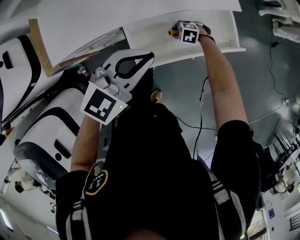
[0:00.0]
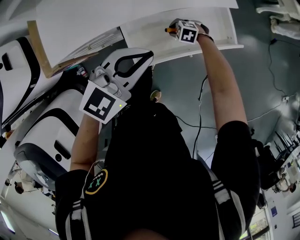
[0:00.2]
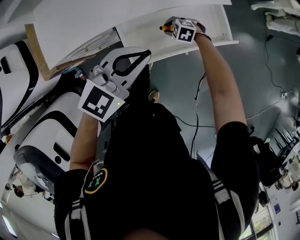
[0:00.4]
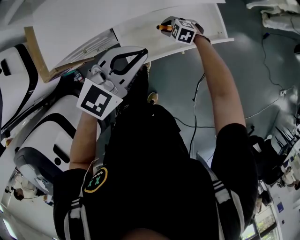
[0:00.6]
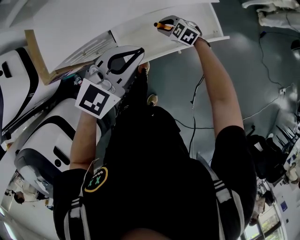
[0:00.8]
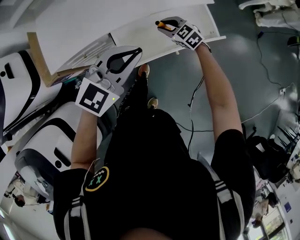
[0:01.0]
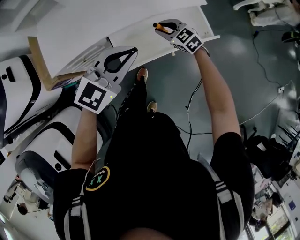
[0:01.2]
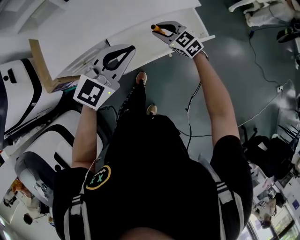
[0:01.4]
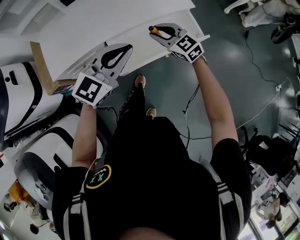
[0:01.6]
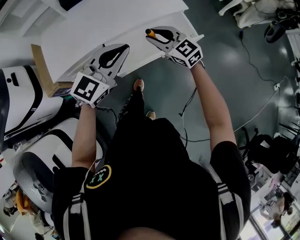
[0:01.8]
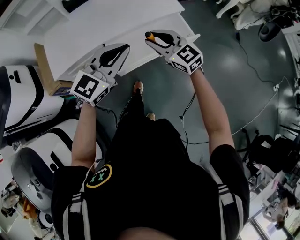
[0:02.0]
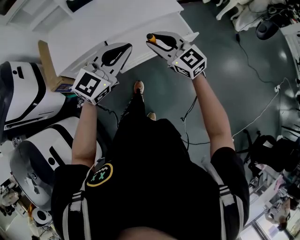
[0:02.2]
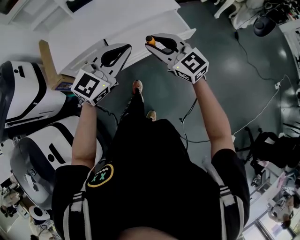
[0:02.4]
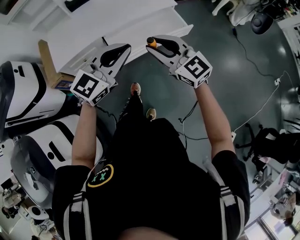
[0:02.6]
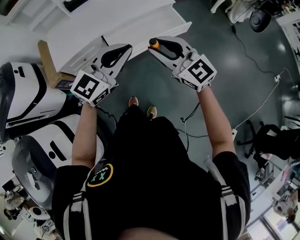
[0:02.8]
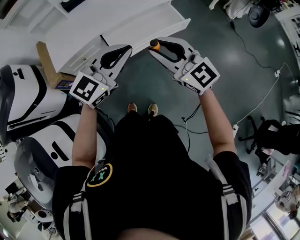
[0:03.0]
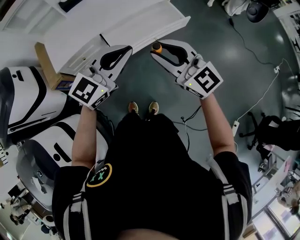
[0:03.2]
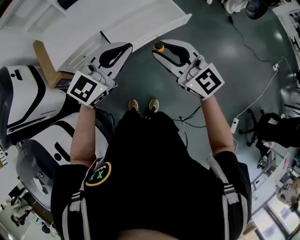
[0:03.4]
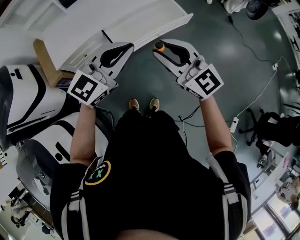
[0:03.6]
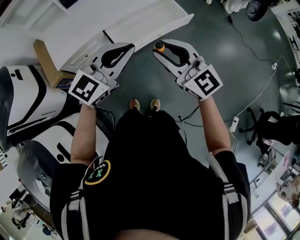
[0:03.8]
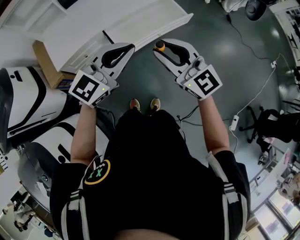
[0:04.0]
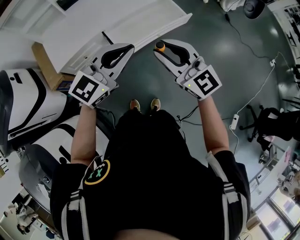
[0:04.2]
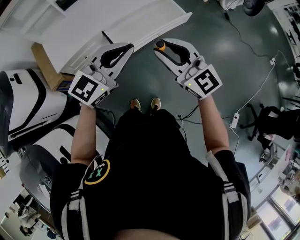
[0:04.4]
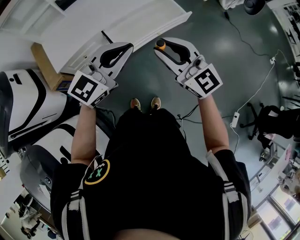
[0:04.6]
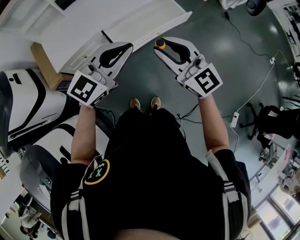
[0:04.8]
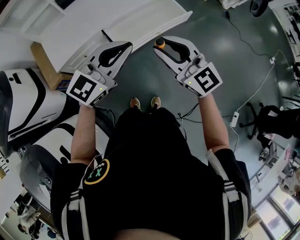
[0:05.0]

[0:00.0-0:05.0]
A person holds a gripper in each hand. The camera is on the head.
0.0 to 1.6 s: The left gripper moves upward, some 5 cm. Meanwhile the right gripper goes about 30 cm upward, and angles its fingers upward, by about 50 degrees.
1.6 to 3.4 s: The right gripper heads backward and upward, covering approximately 35 cm, and swivels roughly 20 degrees; the left gripper moves backward, some 20 cm.
3.4 to 5.0 s: The grippers stay close to where they were, moving slightly.

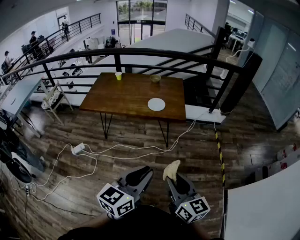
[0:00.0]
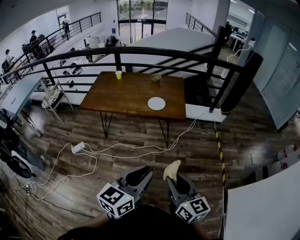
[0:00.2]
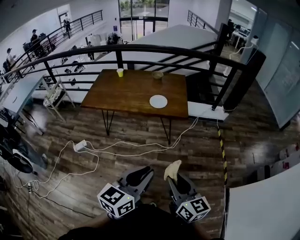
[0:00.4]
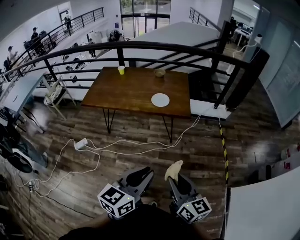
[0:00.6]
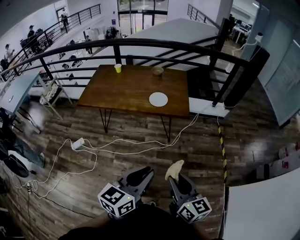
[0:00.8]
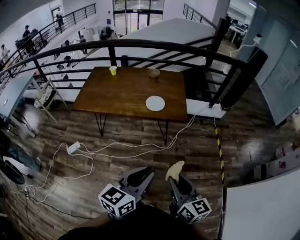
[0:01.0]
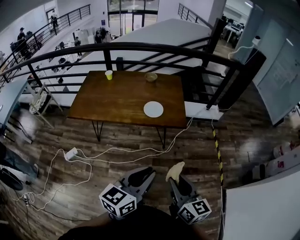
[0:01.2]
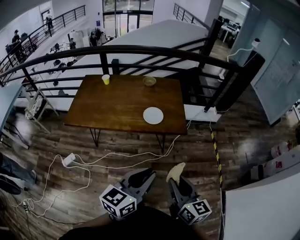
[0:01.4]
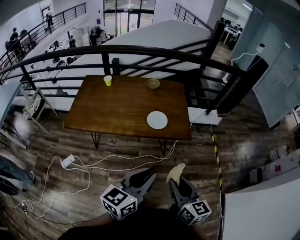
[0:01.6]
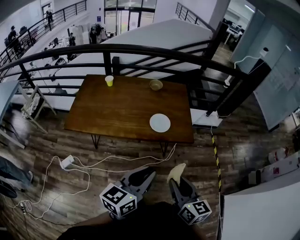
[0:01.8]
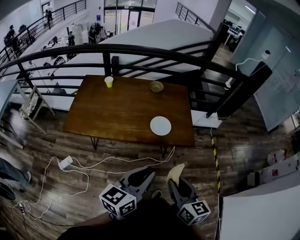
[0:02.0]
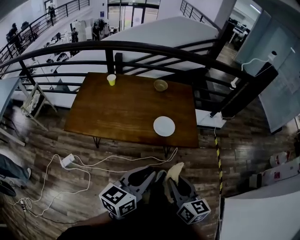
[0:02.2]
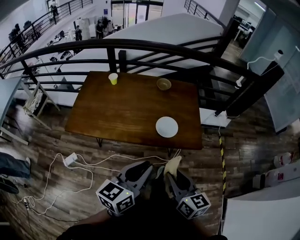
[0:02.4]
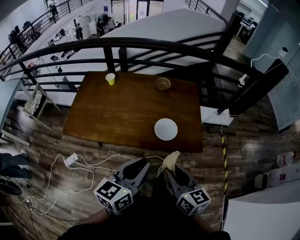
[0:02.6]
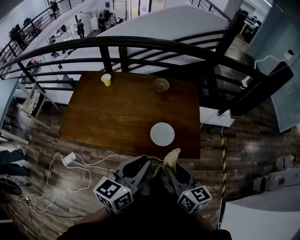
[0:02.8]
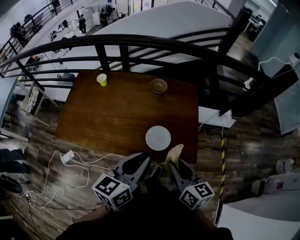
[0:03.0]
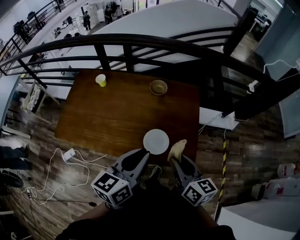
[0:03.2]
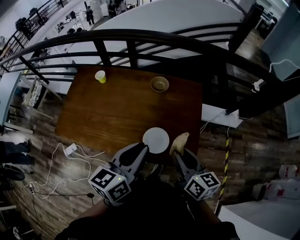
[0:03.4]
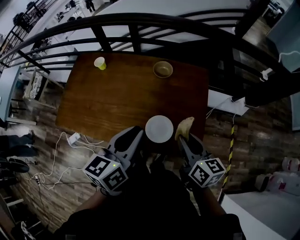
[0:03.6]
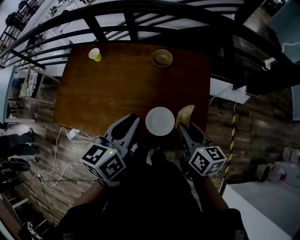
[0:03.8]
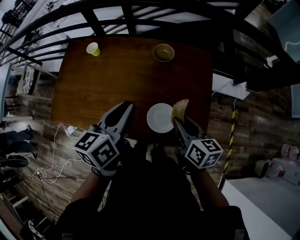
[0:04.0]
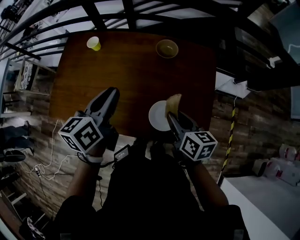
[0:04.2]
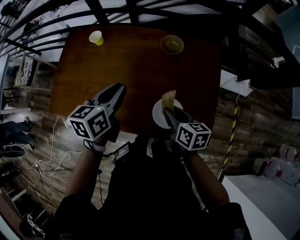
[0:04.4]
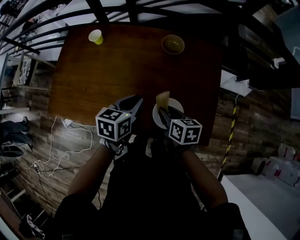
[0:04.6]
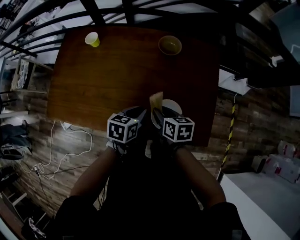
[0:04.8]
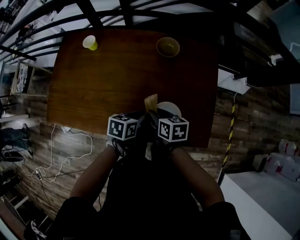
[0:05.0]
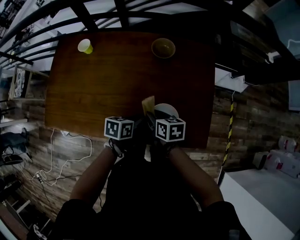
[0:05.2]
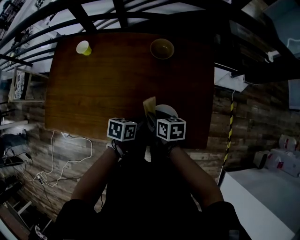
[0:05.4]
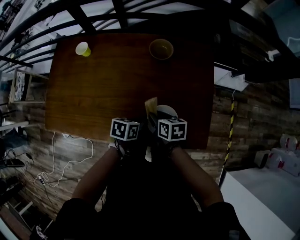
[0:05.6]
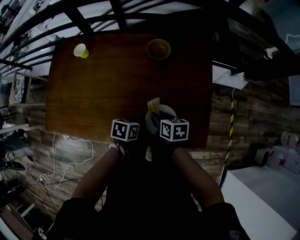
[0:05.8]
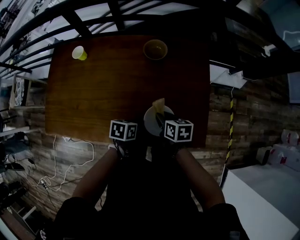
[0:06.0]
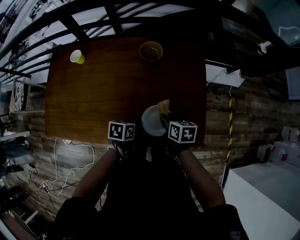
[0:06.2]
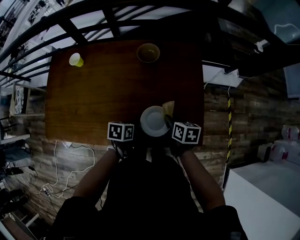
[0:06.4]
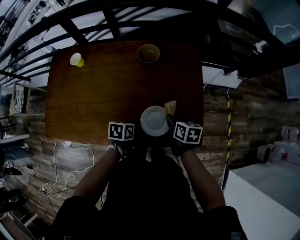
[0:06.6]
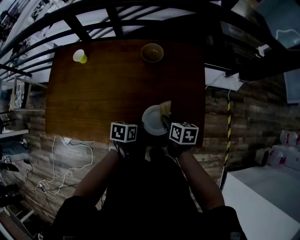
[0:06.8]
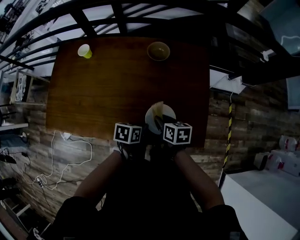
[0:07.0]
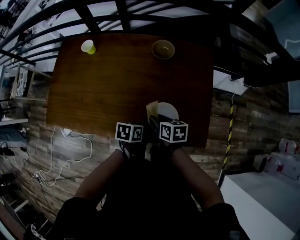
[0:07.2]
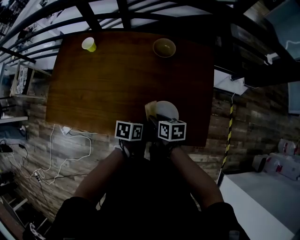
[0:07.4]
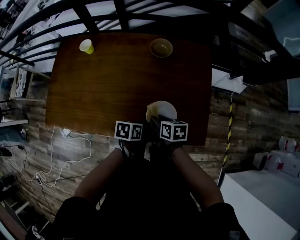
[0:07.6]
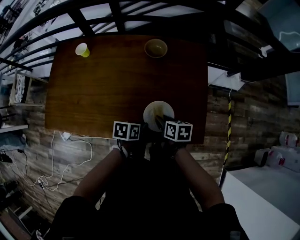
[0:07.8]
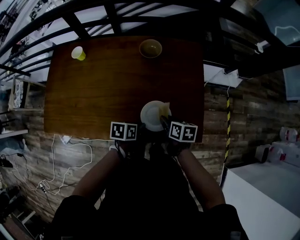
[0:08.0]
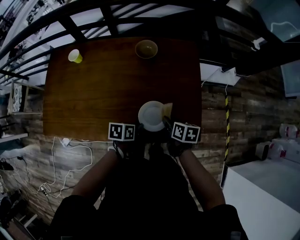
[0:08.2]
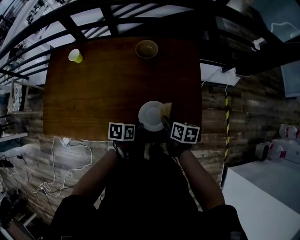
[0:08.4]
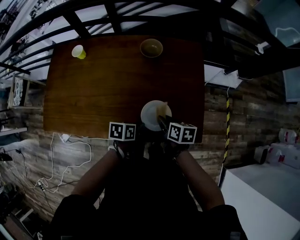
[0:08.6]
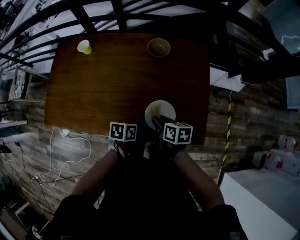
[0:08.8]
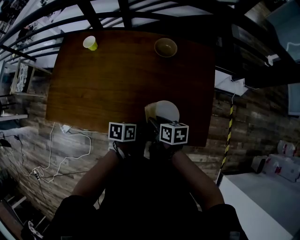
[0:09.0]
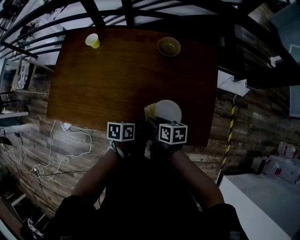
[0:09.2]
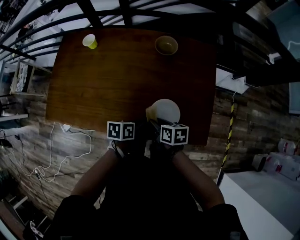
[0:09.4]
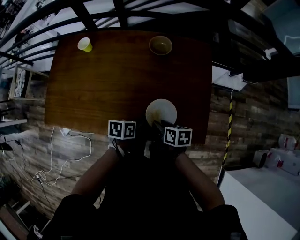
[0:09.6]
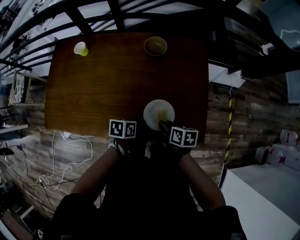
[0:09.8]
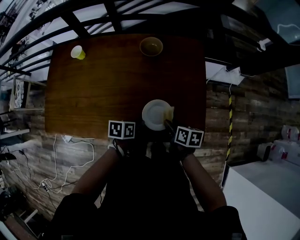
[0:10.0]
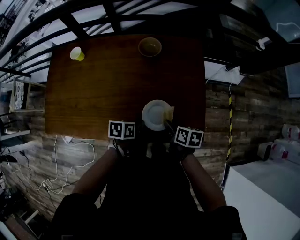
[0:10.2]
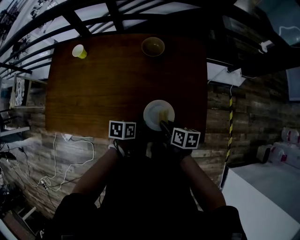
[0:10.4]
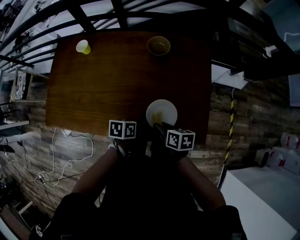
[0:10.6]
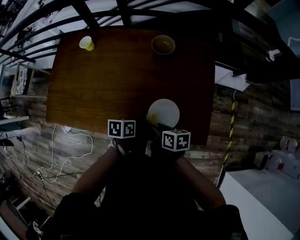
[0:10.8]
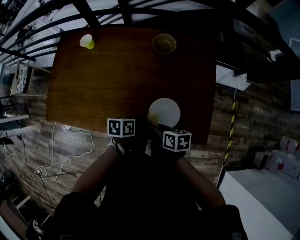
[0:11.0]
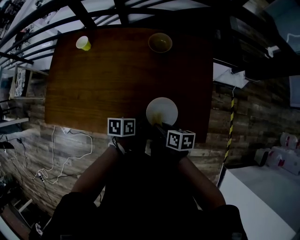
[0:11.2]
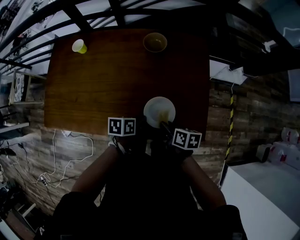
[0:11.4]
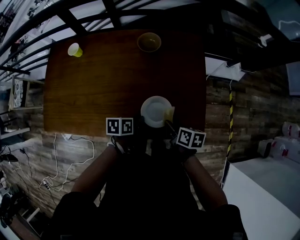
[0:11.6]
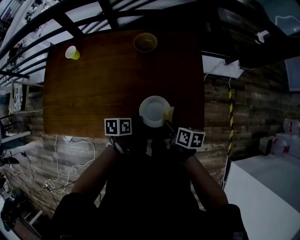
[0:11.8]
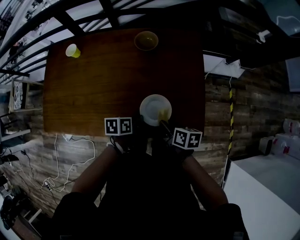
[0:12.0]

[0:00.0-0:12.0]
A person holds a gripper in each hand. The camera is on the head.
0.0 to 1.6 s: Both grippers move forward and to the left, roughly 30 cm.
1.6 to 3.0 s: Both grippers move forward, roughly 35 cm.
3.0 to 4.4 s: The left gripper heads forward, downward and to the left, covering roughly 30 cm; the right gripper heads forward and downward, covering roughly 25 cm, and rotates approximately 20 degrees.
4.4 to 6.0 s: The right gripper shifts about 10 cm downward. The left gripper moves downward and to the right, roughly 25 cm, and swivels roughly 40 degrees.
6.0 to 7.6 s: The right gripper goes to the right and returns, some 10 cm each way.
7.6 to 9.0 s: The right gripper travels to the right and back again, about 10 cm each way.
9.0 to 10.4 s: The right gripper shifts approximately 10 cm to the right.
10.4 to 12.0 s: The right gripper reaches approximately 5 cm to the left, then returns.

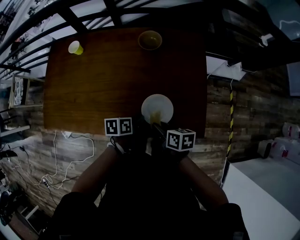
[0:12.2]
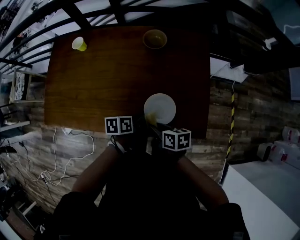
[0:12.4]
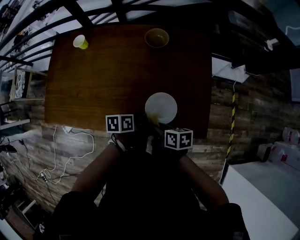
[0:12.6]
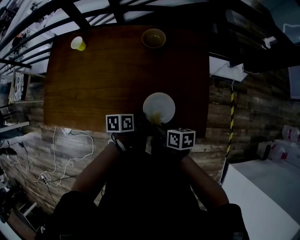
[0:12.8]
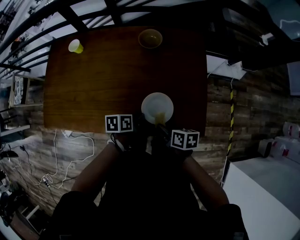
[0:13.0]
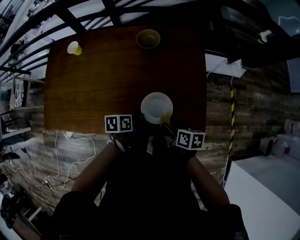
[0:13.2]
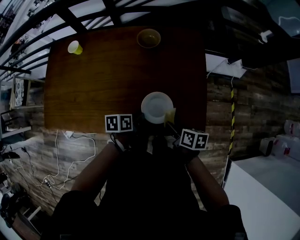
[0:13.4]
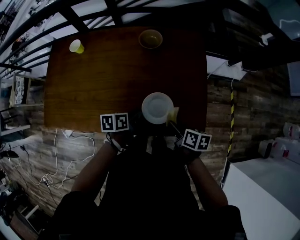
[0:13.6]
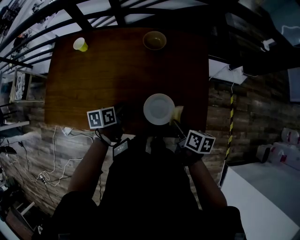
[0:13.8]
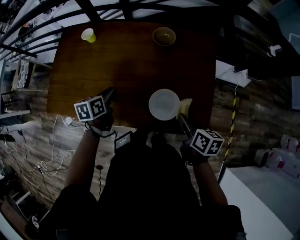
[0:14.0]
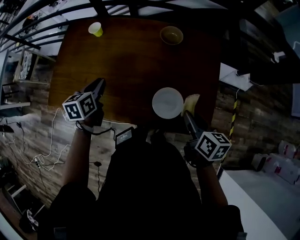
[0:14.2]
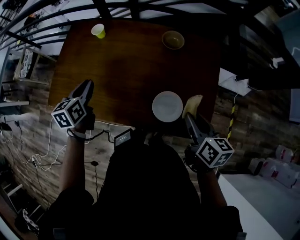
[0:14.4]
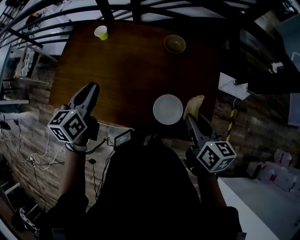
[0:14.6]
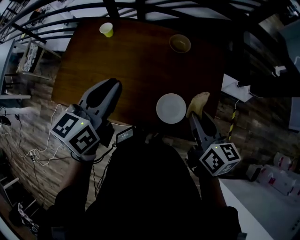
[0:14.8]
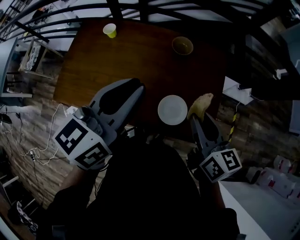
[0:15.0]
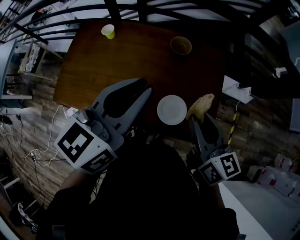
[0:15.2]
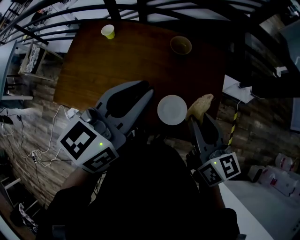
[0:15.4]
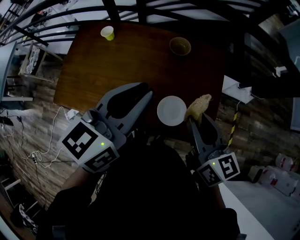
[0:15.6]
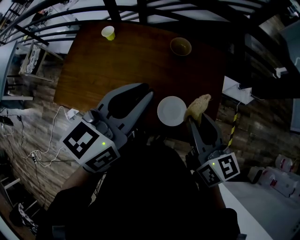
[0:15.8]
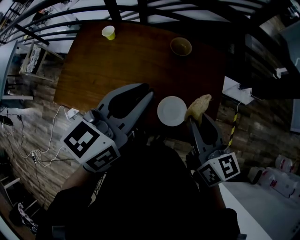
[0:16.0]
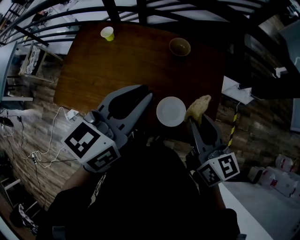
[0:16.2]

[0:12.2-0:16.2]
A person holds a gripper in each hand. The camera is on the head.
12.2 to 13.6 s: The right gripper goes about 5 cm to the right.
13.6 to 14.8 s: Both grippers move upward, approximately 25 cm. The left gripper changes its angle by approximately 50 degrees; the right gripper turns by approximately 30 degrees.
14.8 to 16.2 s: The left gripper moves to the right and upward, some 10 cm; the right gripper moves upward, approximately 5 cm.

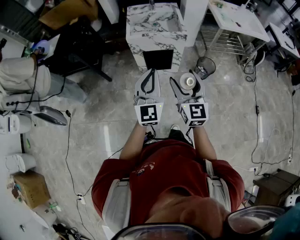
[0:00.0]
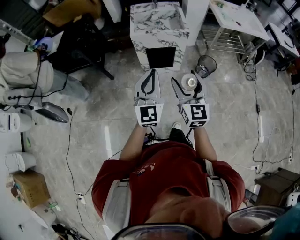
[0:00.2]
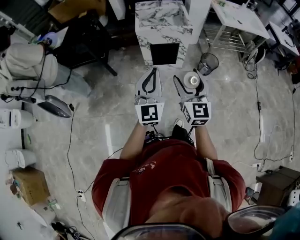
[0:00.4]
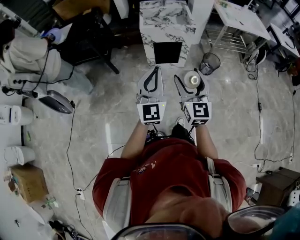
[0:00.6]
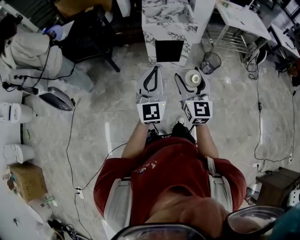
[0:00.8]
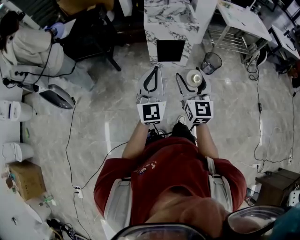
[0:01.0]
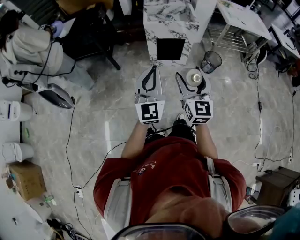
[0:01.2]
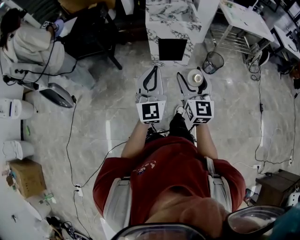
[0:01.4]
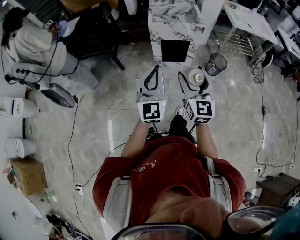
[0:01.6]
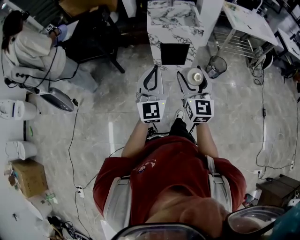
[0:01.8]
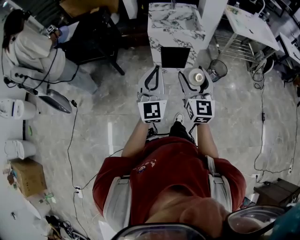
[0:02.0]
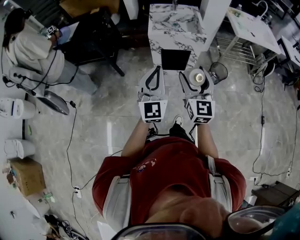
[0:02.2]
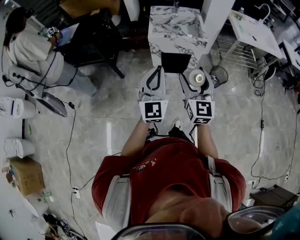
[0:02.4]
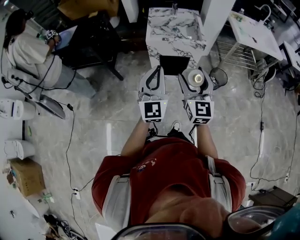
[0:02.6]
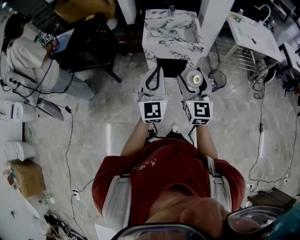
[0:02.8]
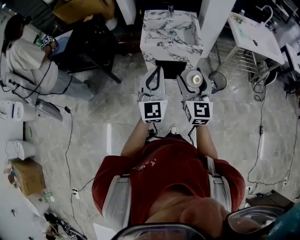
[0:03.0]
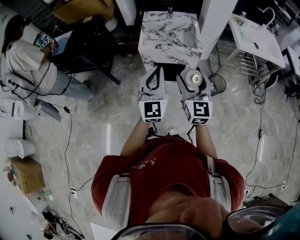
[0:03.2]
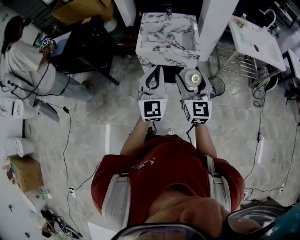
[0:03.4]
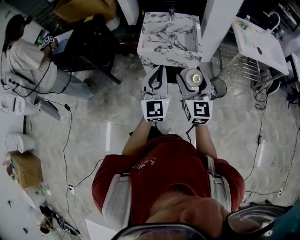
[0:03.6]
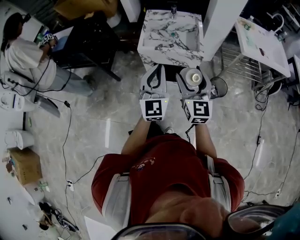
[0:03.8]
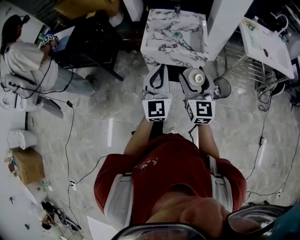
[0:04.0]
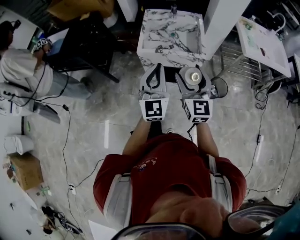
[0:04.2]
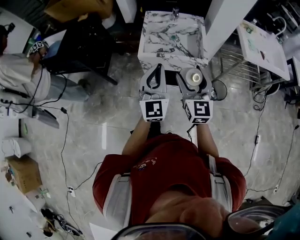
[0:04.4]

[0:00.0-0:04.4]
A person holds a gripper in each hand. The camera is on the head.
0.0 to 1.4 s: Both grippers move backward and to the left, approximately 20 cm.
1.4 to 3.0 s: The two grippers go approximately 25 cm forward.
3.0 to 4.4 s: The grippers both shift forward by roughly 15 cm.
